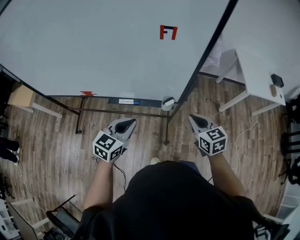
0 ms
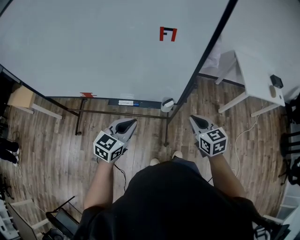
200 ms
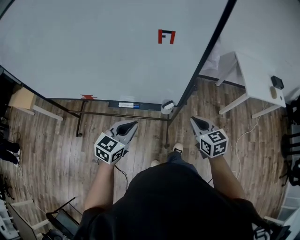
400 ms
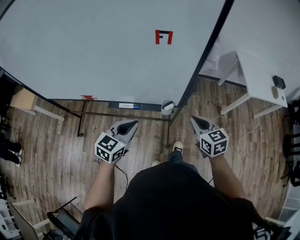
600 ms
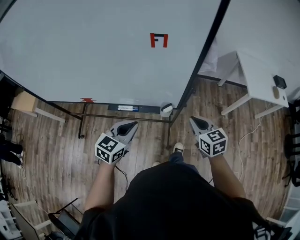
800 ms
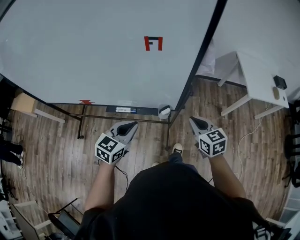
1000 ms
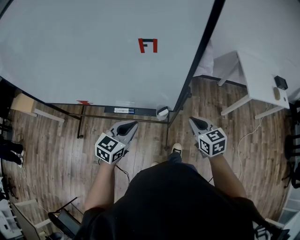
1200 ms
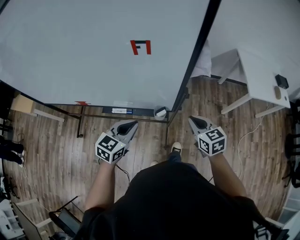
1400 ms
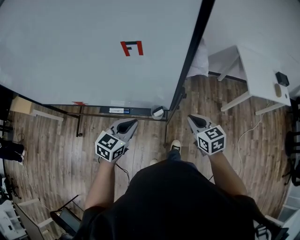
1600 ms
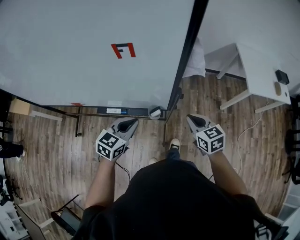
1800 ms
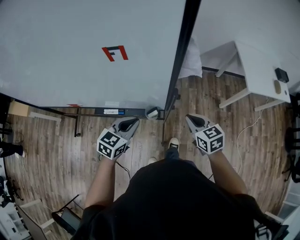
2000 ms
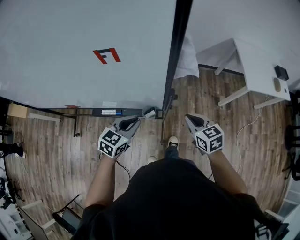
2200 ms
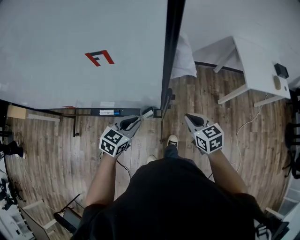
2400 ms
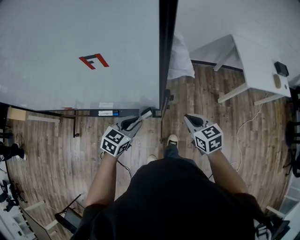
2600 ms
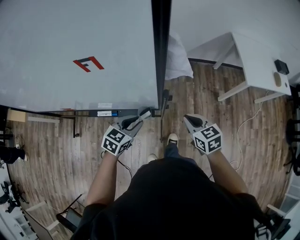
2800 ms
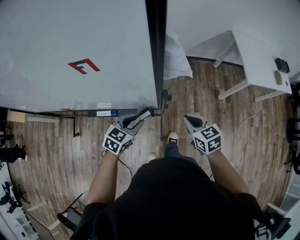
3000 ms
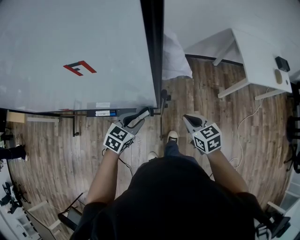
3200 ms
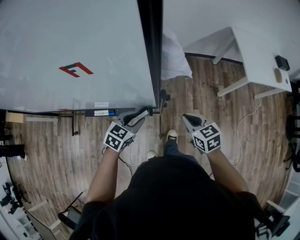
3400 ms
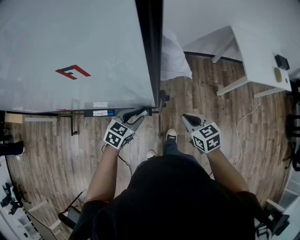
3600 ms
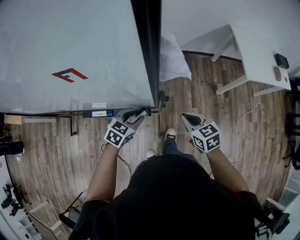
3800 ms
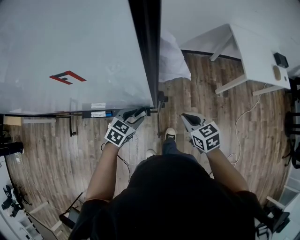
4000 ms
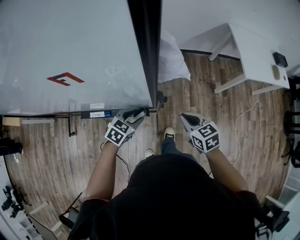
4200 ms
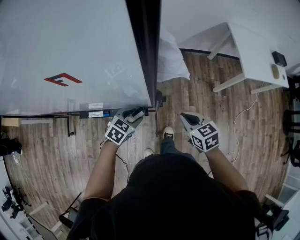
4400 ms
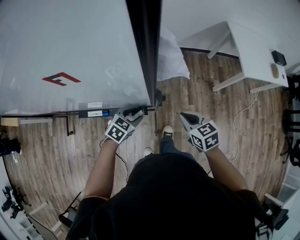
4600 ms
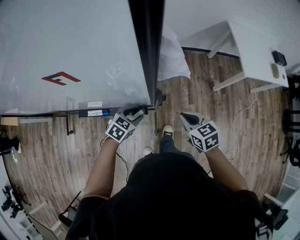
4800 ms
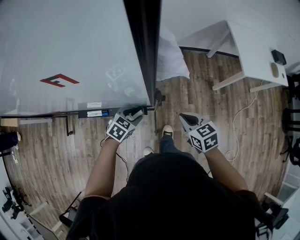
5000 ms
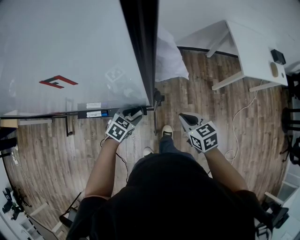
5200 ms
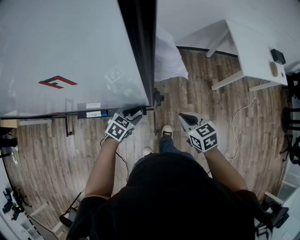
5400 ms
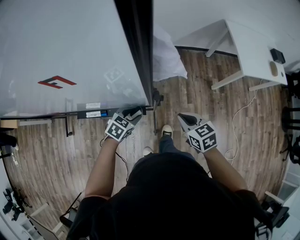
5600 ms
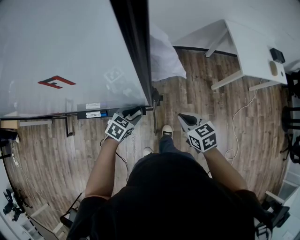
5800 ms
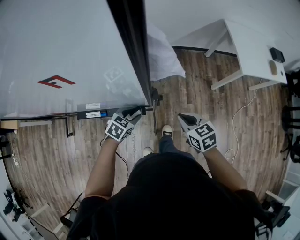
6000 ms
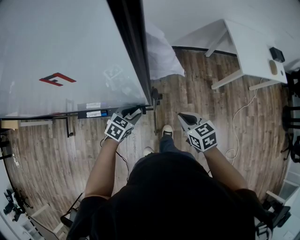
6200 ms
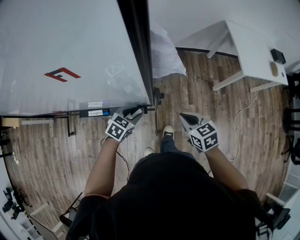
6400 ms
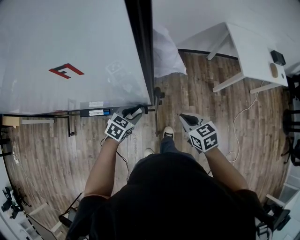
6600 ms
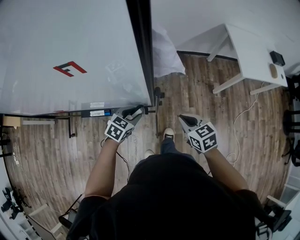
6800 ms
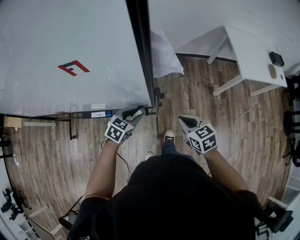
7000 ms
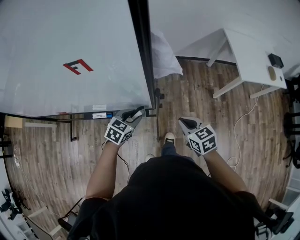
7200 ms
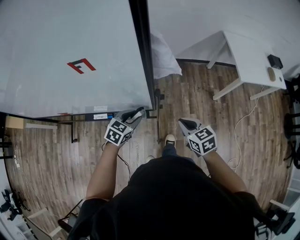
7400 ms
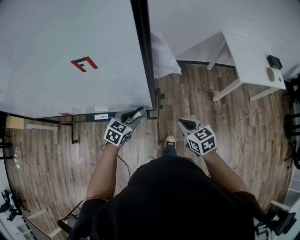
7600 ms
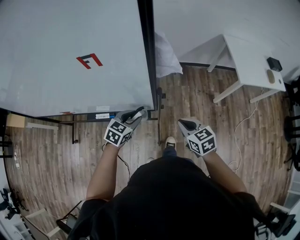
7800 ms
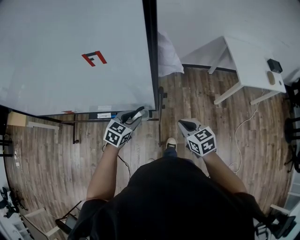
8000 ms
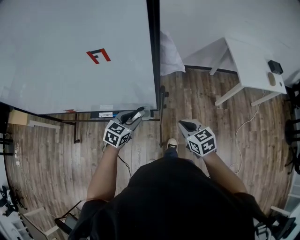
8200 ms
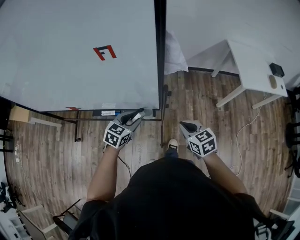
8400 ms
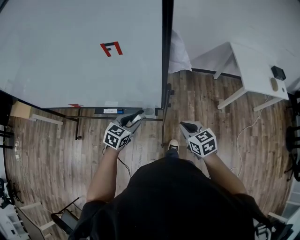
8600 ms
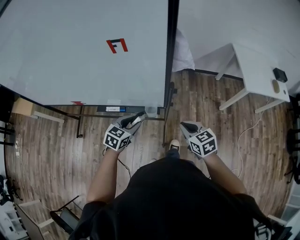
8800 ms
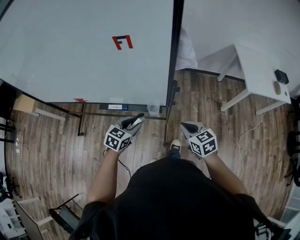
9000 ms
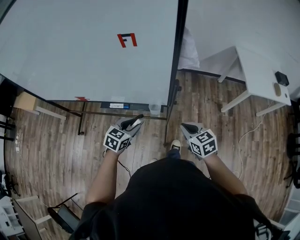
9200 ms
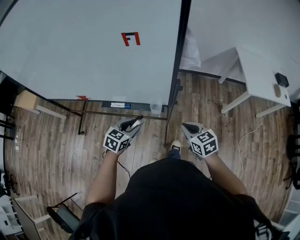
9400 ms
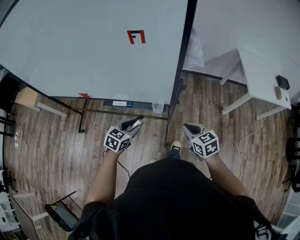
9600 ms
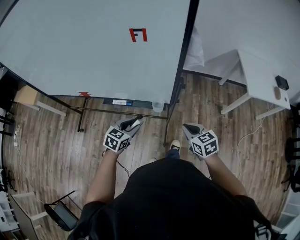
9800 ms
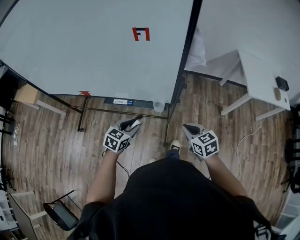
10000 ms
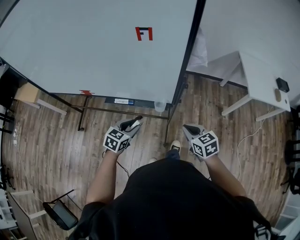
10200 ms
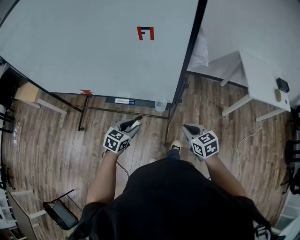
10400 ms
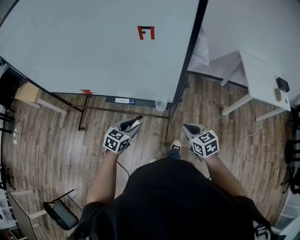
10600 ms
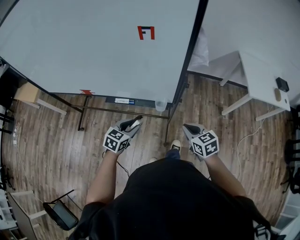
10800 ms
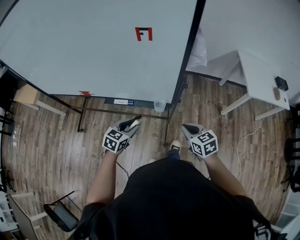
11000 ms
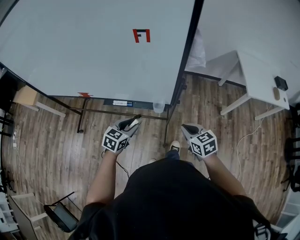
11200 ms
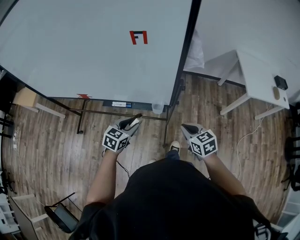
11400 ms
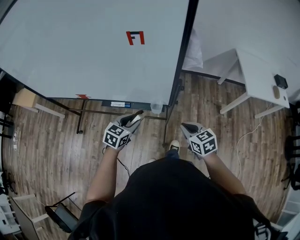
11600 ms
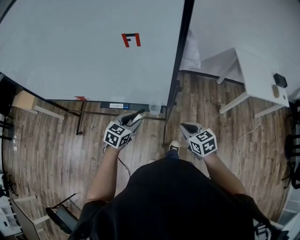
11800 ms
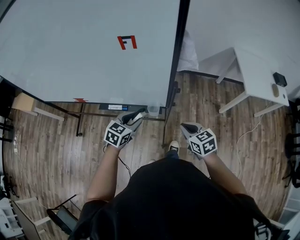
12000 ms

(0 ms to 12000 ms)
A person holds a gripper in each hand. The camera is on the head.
0 ms - 1600 ms: Both grippers travel together forward and to the right, about 10 cm.
1600 ms - 3000 ms: The right gripper is displaced downward and to the right by approximately 5 cm, while the left gripper moves downward, to the right and forward, some 15 cm, and opens.
3000 ms - 4400 ms: The left gripper moves downward, roughly 10 cm, and opens.
4400 ms - 6000 ms: There are only small adjustments of the grippers.
6000 ms - 7600 ms: The right gripper changes place by approximately 5 cm, while the left gripper moves upward, approximately 10 cm.
7600 ms - 9000 ms: The left gripper travels backward and to the left by approximately 10 cm, while the right gripper is displaced backward by approximately 5 cm.
9000 ms - 10400 ms: The left gripper travels to the left by approximately 5 cm.
10400 ms - 12000 ms: The left gripper heads forward and to the right, covering roughly 10 cm.

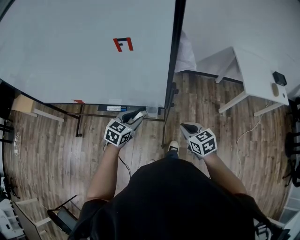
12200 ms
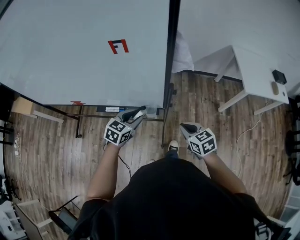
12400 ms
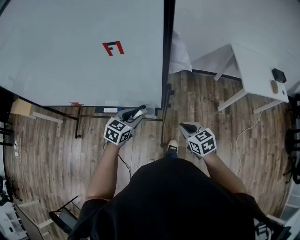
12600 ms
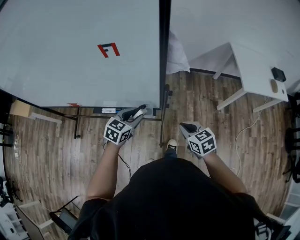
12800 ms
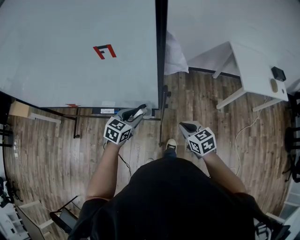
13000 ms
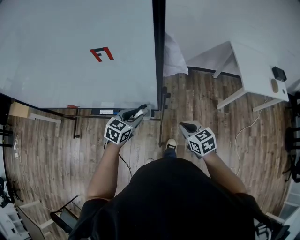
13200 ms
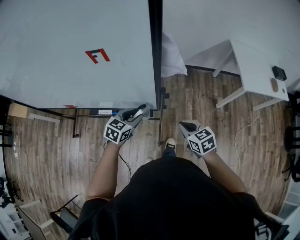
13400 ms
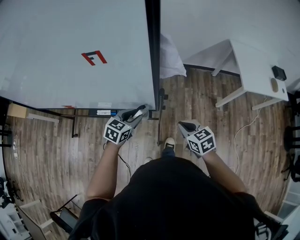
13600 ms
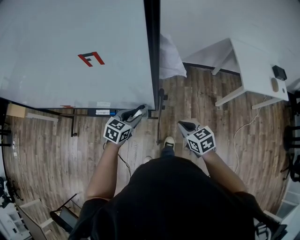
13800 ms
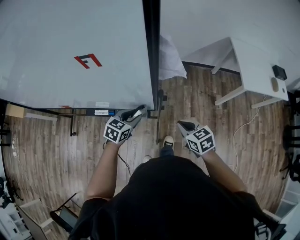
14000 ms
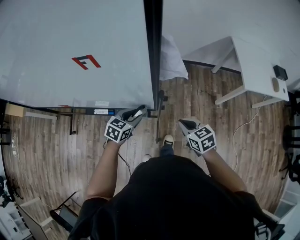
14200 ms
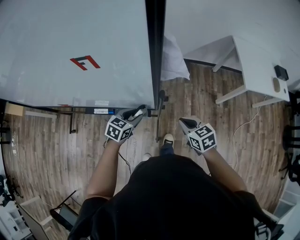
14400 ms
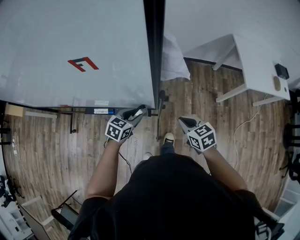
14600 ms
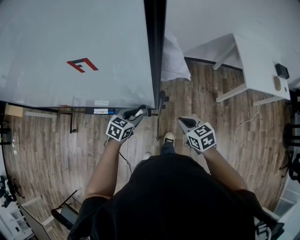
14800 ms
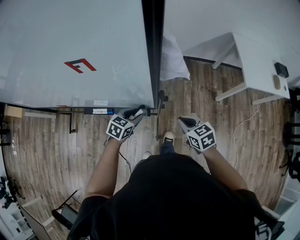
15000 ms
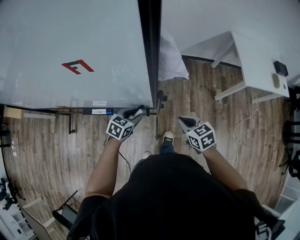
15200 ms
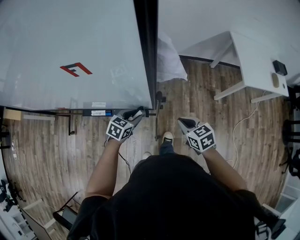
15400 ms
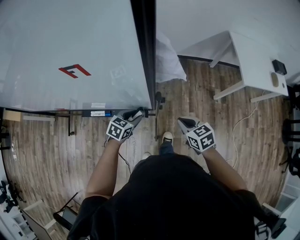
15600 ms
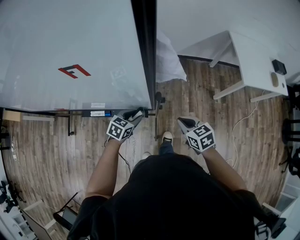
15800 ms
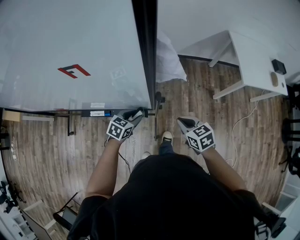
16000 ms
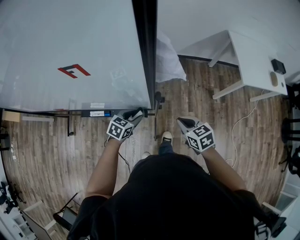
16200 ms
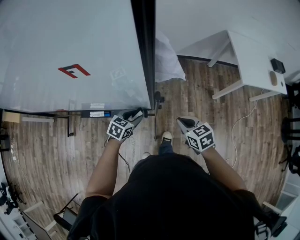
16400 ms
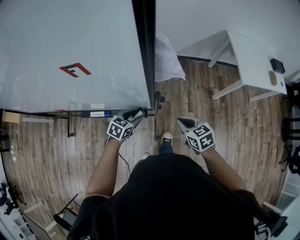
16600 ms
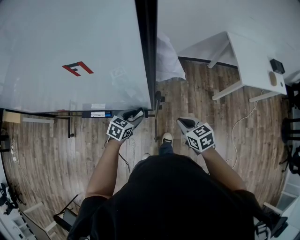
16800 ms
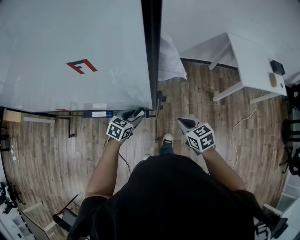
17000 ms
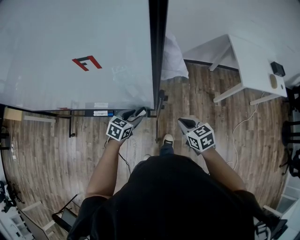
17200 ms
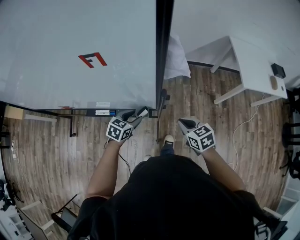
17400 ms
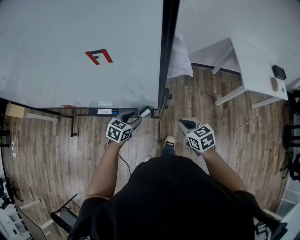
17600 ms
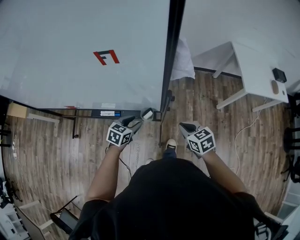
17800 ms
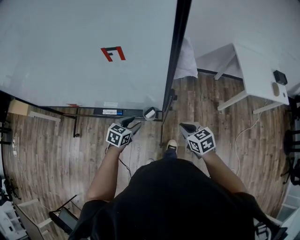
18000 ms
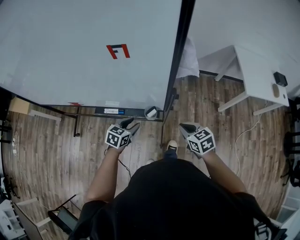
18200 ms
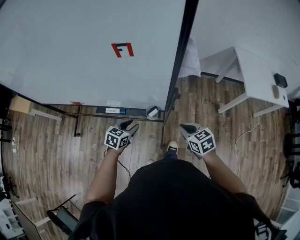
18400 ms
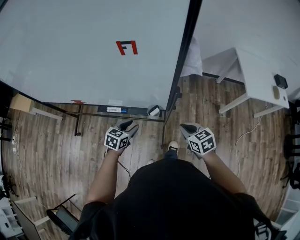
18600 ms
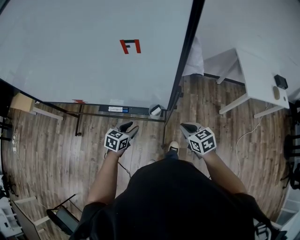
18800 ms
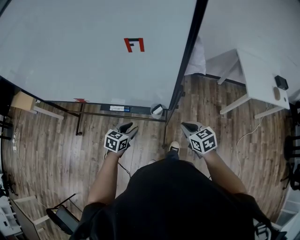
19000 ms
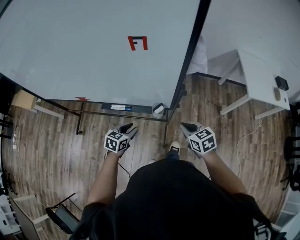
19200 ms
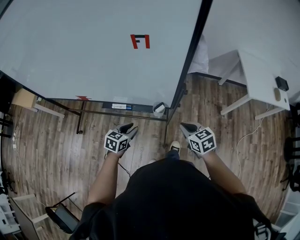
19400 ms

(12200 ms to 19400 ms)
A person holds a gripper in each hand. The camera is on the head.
12200 ms - 13600 ms: The right gripper changes place by about 5 cm; the left gripper shifts about 5 cm forward and to the right.
13600 ms - 15000 ms: The left gripper heads downward, covering roughly 5 cm.
15000 ms - 16600 ms: The grippers stay close to where they were, moving slightly.
16600 ms - 18000 ms: The right gripper moves roughly 5 cm; the left gripper travels to the left and backward by some 10 cm.
18000 ms - 19400 ms: The left gripper shifts roughly 10 cm backward and to the left; the right gripper shifts by about 5 cm.

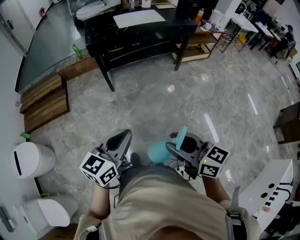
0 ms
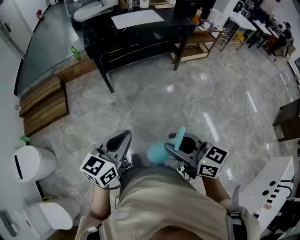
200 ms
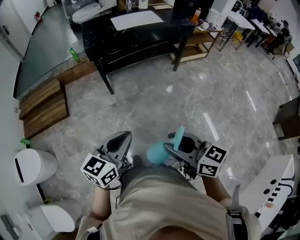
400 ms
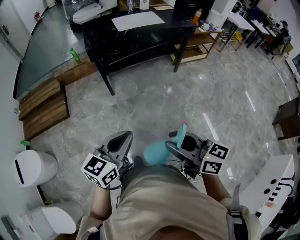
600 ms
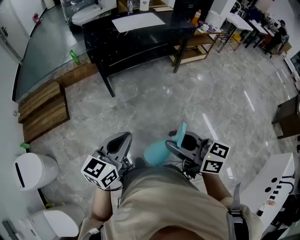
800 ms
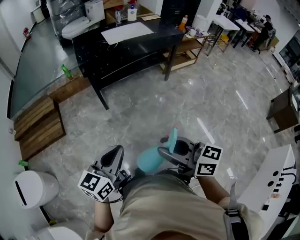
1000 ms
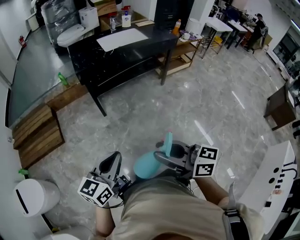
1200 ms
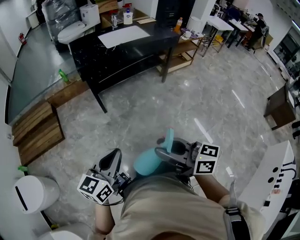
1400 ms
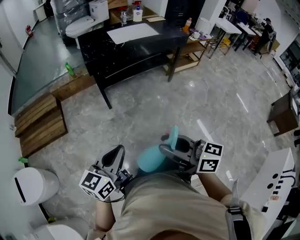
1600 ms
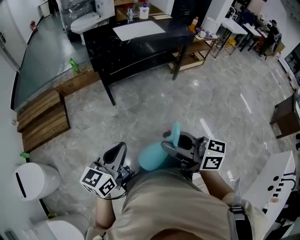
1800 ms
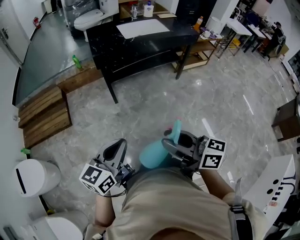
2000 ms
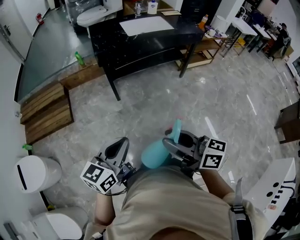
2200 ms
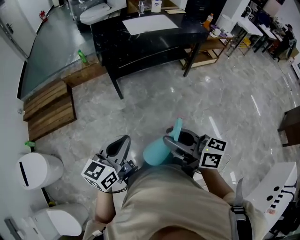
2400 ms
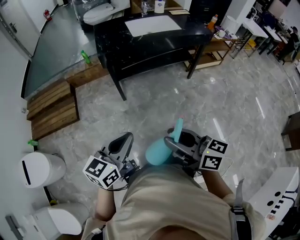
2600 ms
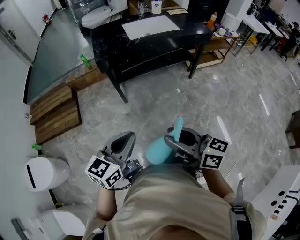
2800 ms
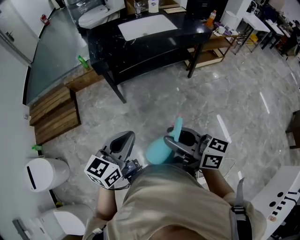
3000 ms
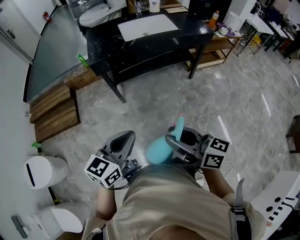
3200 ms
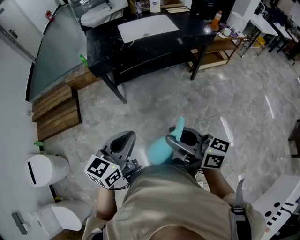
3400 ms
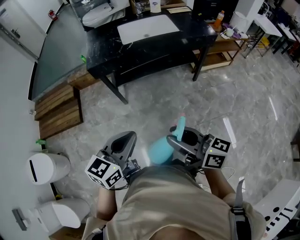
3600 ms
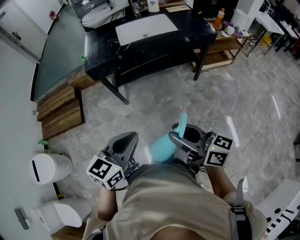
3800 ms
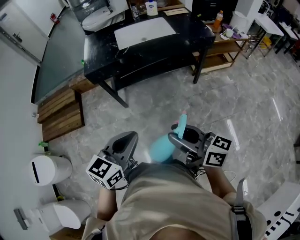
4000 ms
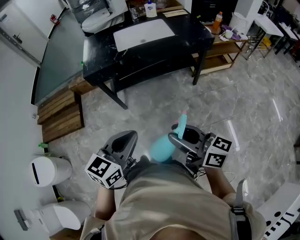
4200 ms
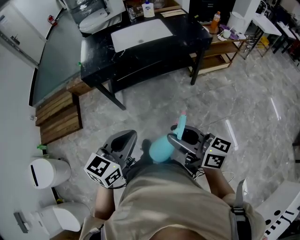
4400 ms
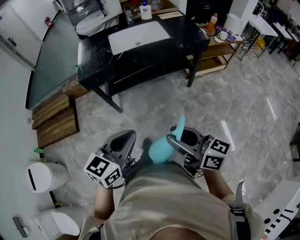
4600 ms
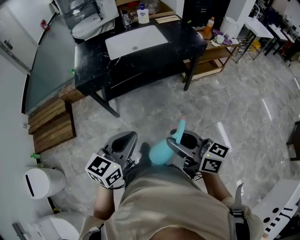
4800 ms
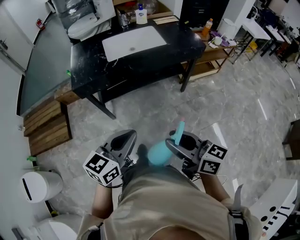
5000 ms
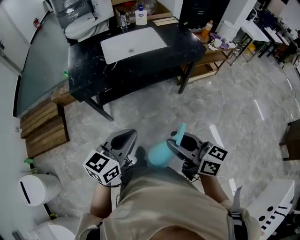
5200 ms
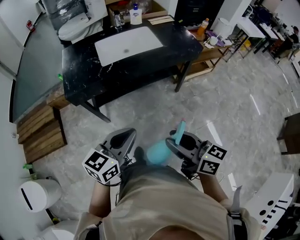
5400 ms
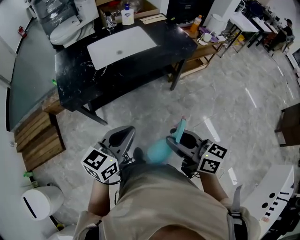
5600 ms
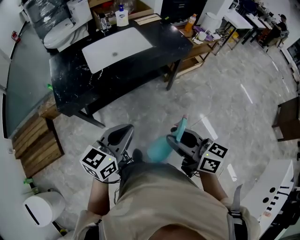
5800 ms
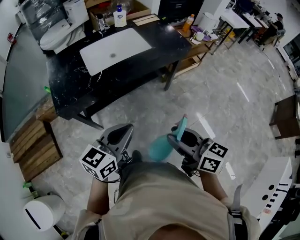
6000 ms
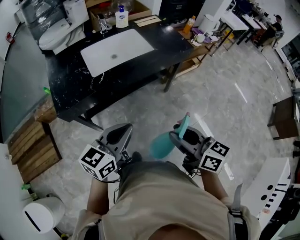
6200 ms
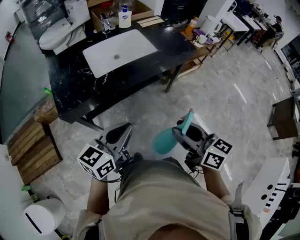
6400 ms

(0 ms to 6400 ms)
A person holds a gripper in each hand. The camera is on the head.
0 ms - 1600 ms: The left gripper heads to the left, covering approximately 10 cm, while the right gripper moves to the left and forward, approximately 10 cm.
1600 ms - 3200 ms: Both grippers travel together forward and to the right, roughly 20 cm.
3200 ms - 4800 ms: The two grippers go approximately 15 cm to the right and forward.
4800 ms - 6400 ms: Both grippers move forward, about 15 cm. The right gripper rotates roughly 20 degrees.
